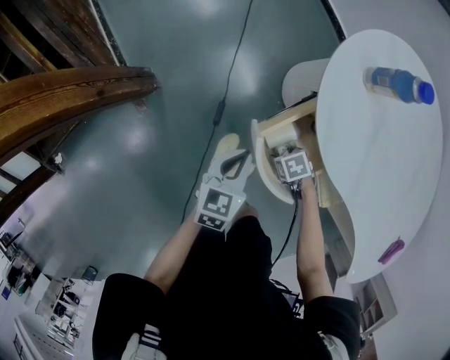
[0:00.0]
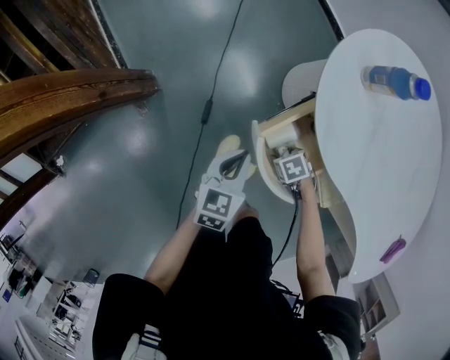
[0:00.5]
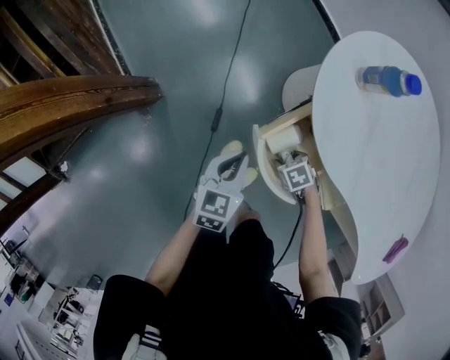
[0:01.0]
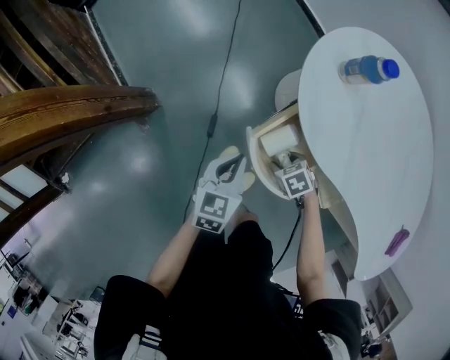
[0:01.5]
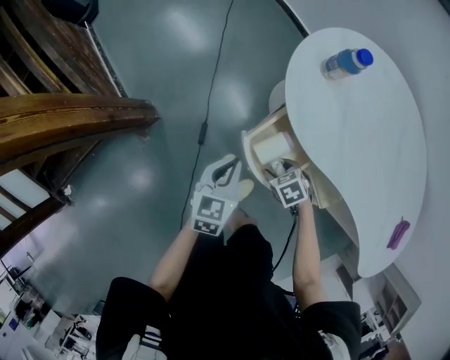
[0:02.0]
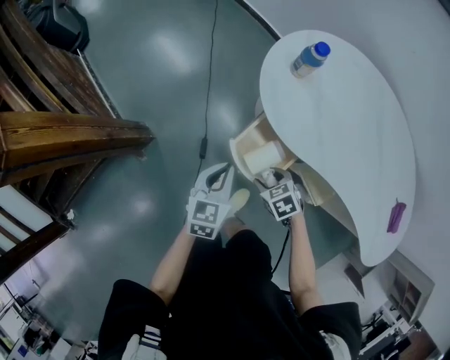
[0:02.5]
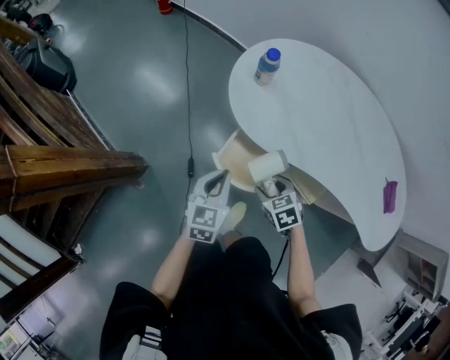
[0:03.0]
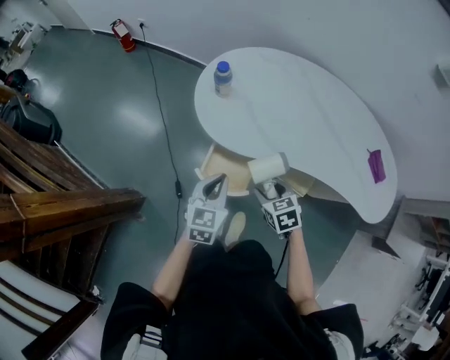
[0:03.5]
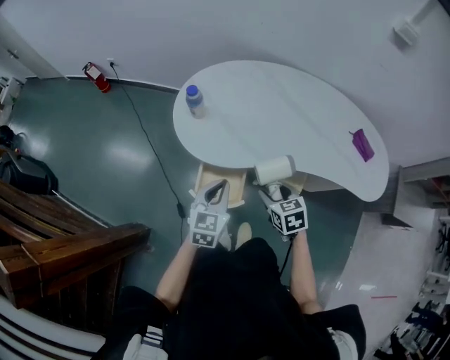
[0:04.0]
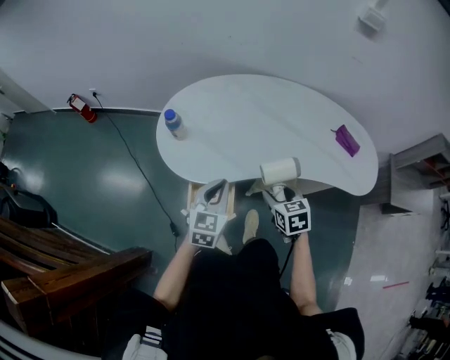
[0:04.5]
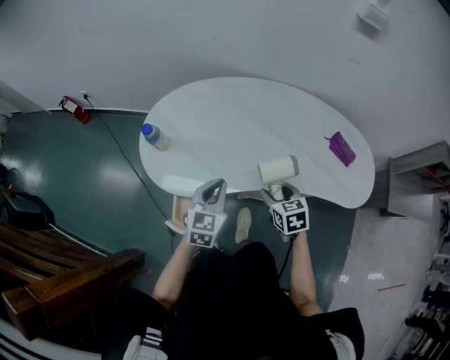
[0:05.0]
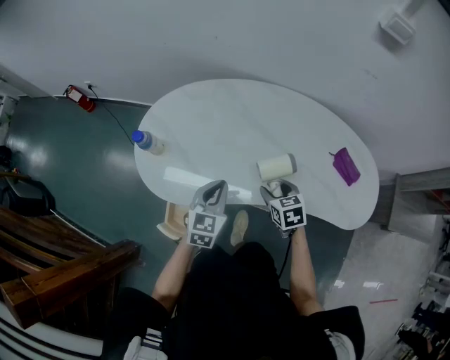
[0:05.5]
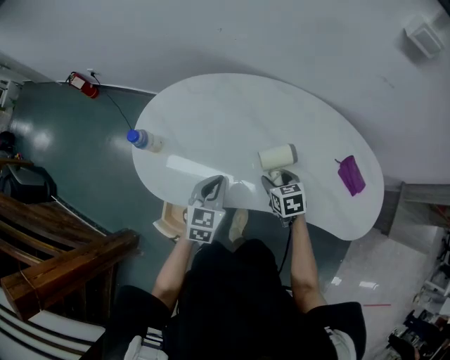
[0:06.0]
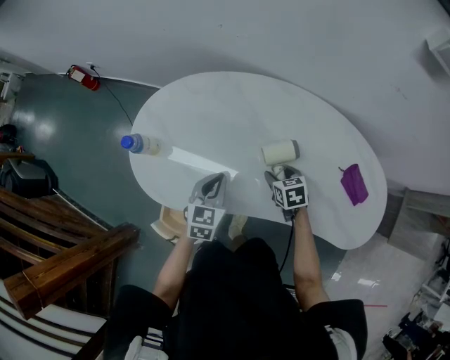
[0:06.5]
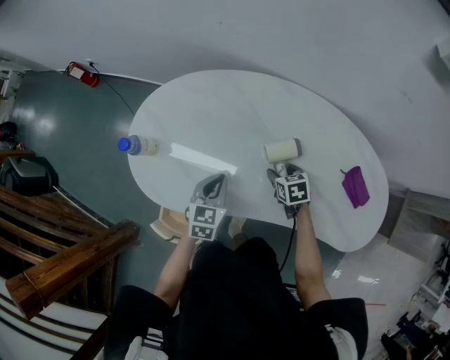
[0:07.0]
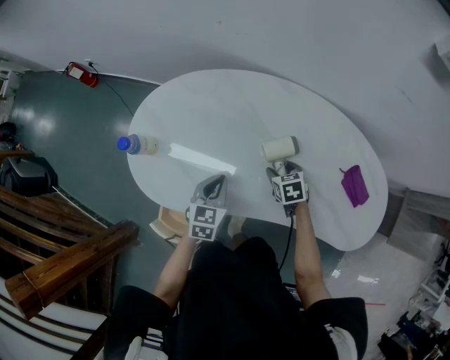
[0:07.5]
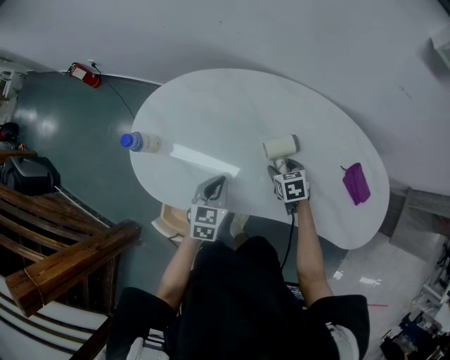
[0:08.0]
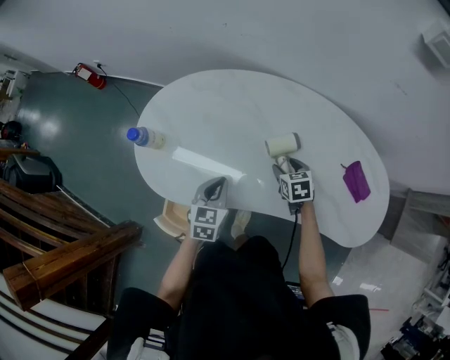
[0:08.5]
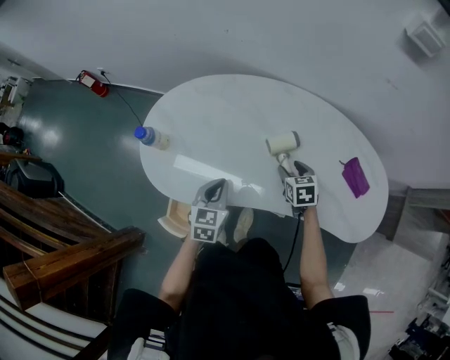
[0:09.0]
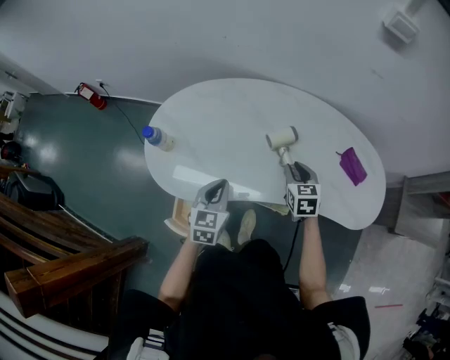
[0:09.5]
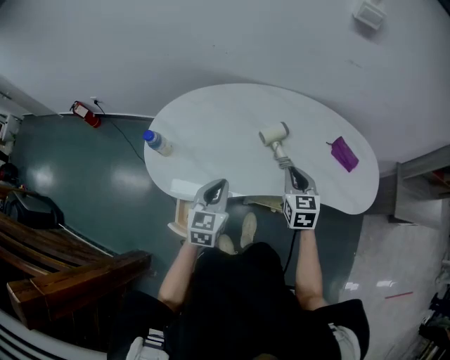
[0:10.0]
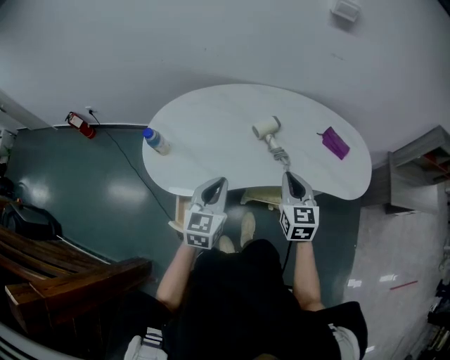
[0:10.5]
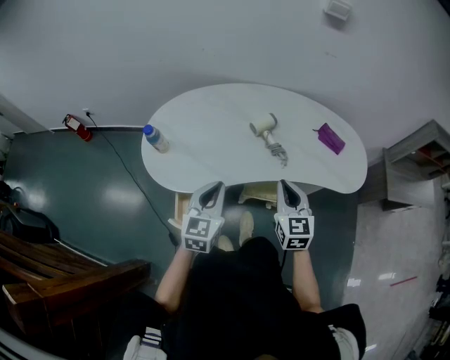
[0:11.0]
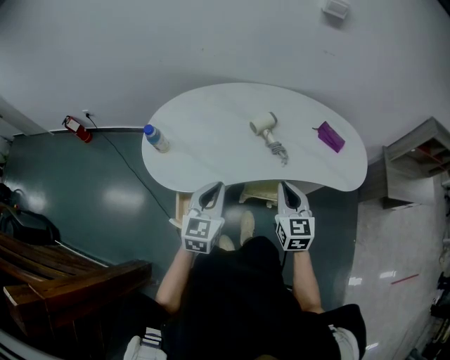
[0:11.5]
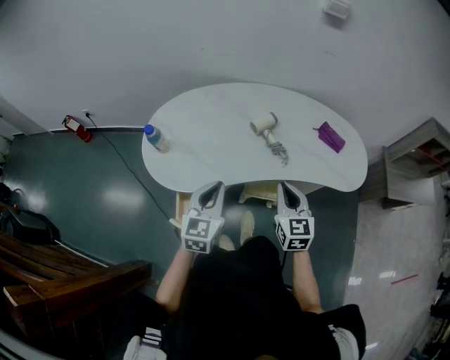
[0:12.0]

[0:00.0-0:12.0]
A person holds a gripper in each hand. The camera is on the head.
0:00.0 to 0:02.0: The right gripper goes some 15 cm upward; the left gripper moves upward, approximately 10 cm.
0:02.0 to 0:04.0: The left gripper shifts by roughly 25 cm, and turns by roughly 40 degrees; the right gripper goes about 25 cm upward, and swivels approximately 60 degrees.
0:04.0 to 0:06.0: Both grippers travel together forward and to the right, approximately 30 cm.
0:06.0 to 0:08.0: The right gripper moves downward and forward, approximately 10 cm. Meanwhile the left gripper changes place by roughly 5 cm.
0:08.0 to 0:10.0: The two grippers go some 20 cm upward and backward. The right gripper turns by about 40 degrees, and closes up.
0:10.0 to 0:12.0: The left gripper travels backward by roughly 10 cm; the right gripper is displaced backward by some 15 cm.

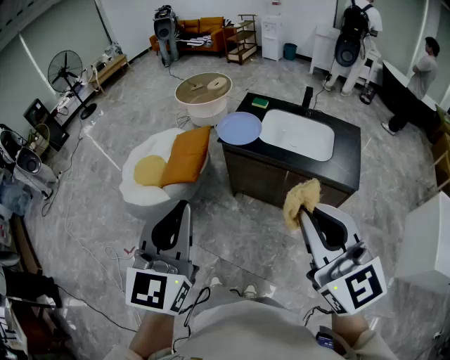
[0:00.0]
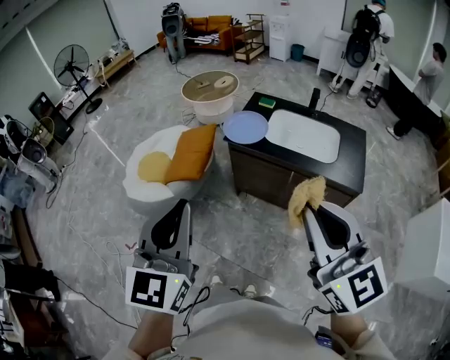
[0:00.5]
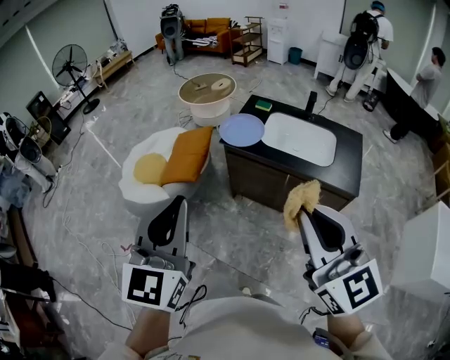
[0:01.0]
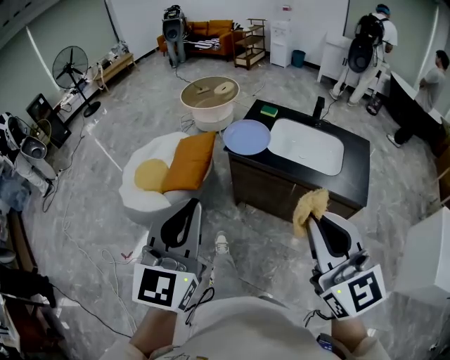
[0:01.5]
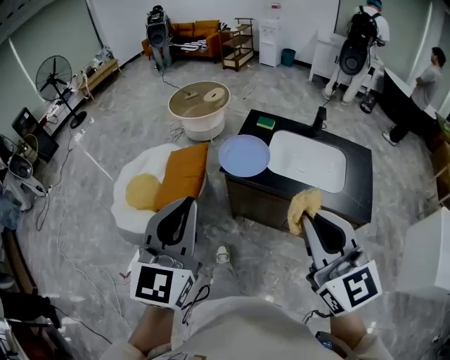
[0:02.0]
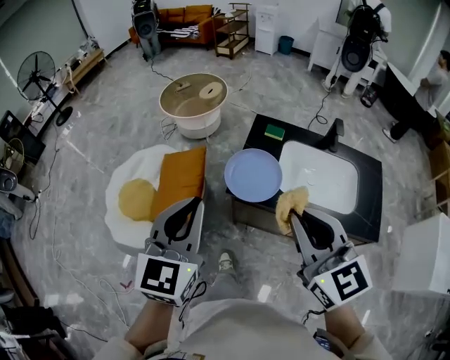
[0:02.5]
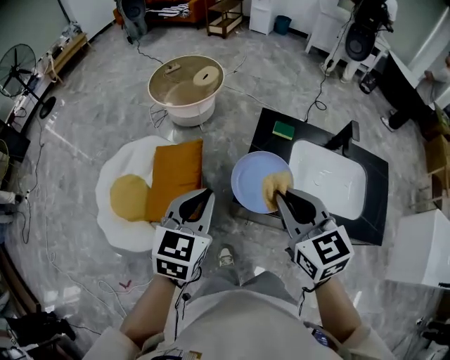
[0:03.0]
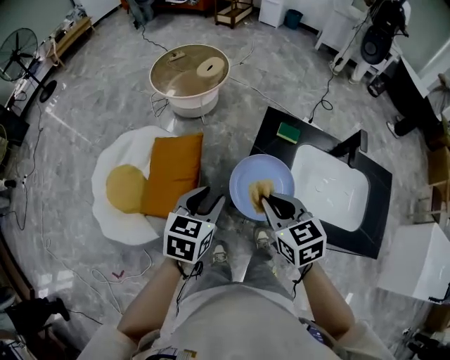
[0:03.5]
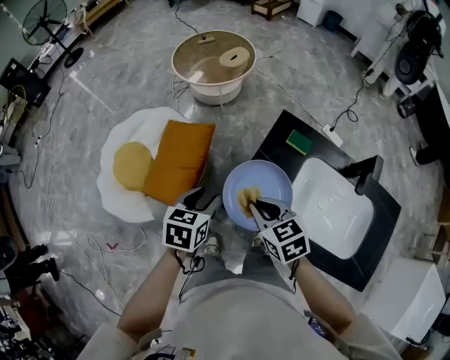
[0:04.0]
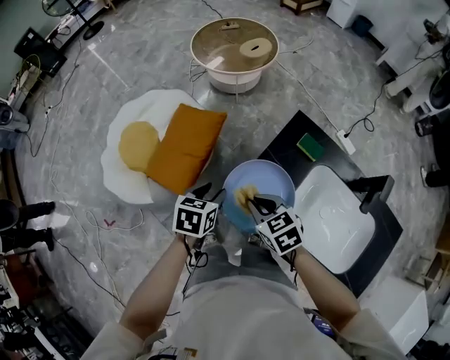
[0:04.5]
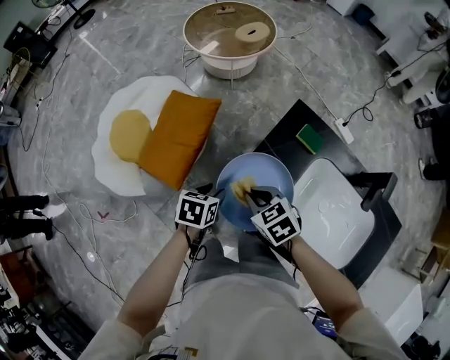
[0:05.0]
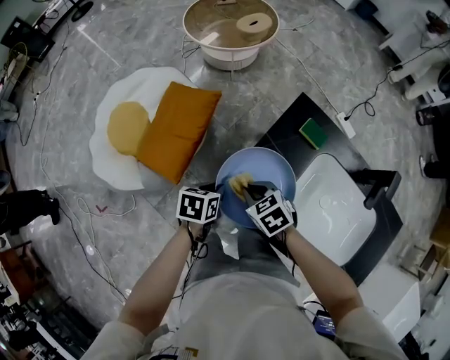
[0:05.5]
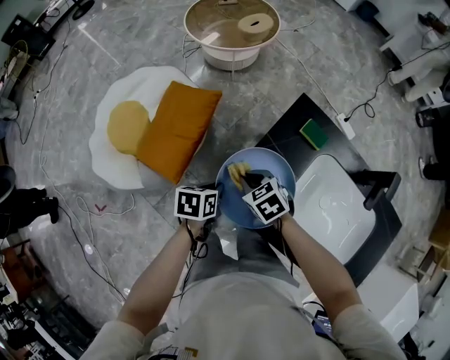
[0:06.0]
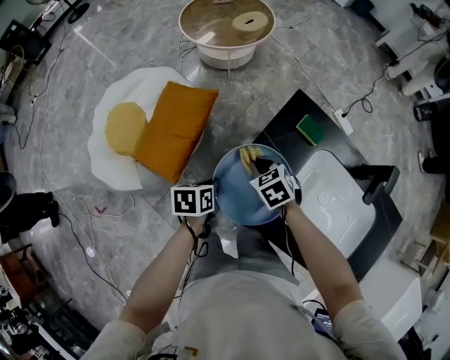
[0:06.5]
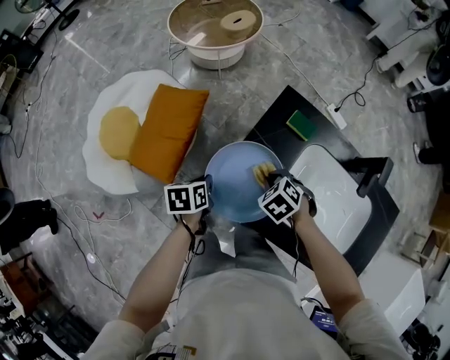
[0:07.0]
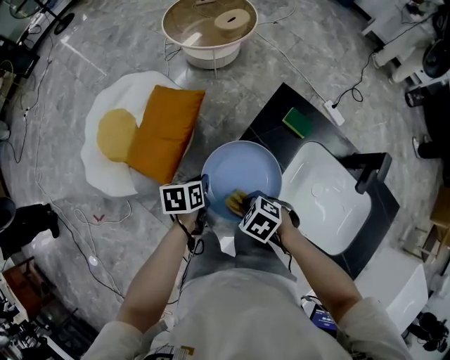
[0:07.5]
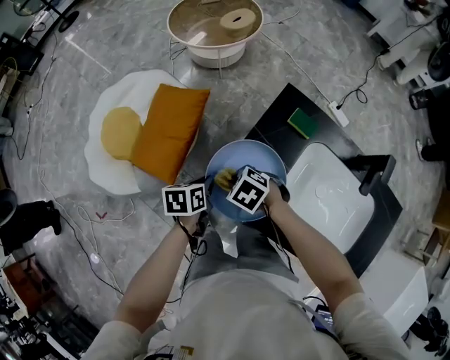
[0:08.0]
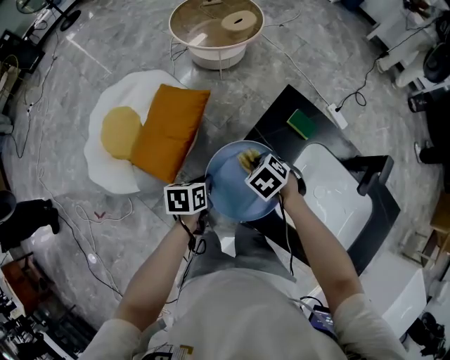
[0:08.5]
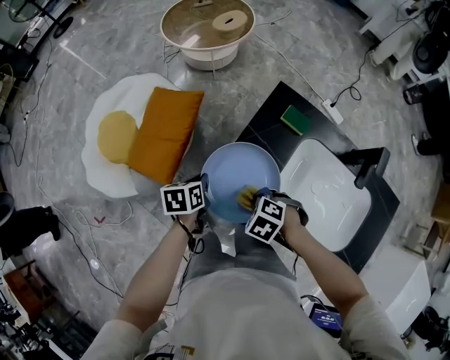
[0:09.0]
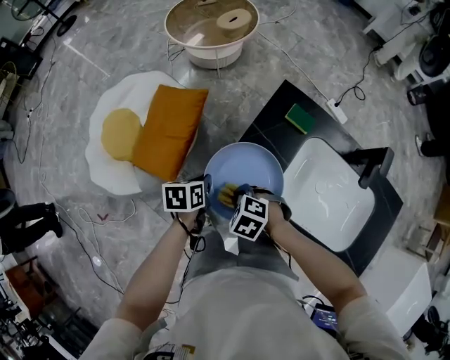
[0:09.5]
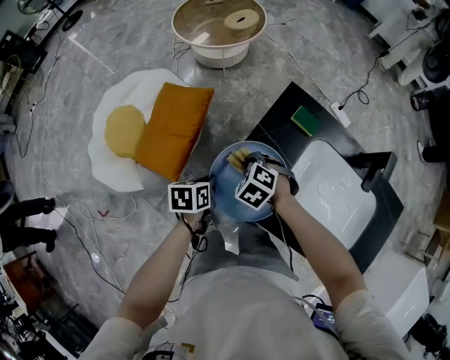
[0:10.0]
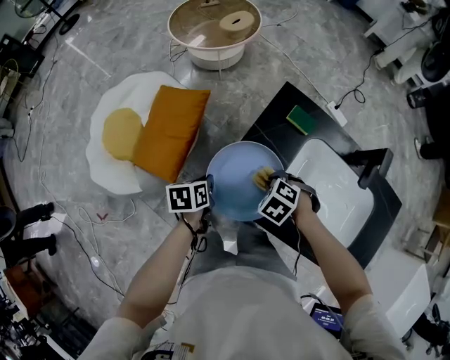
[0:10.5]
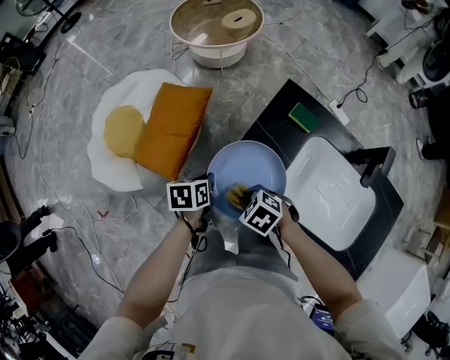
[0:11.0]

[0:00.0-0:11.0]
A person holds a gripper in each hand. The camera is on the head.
0:00.0 to 0:02.0: The grippers both shift forward by approximately 20 cm.
0:02.0 to 0:03.5: Both grippers move forward and downward, roughly 40 cm. The left gripper tips its fingers downward by some 30 degrees, and opens up. Meanwhile the right gripper tilts its fingers about 30 degrees downward.
0:03.5 to 0:05.5: The grippers both shift downward by about 20 cm. The left gripper rotates roughly 40 degrees, and closes. Meanwhile the right gripper turns by some 40 degrees.
0:05.5 to 0:07.5: The right gripper shifts by some 10 cm, and swivels some 20 degrees.

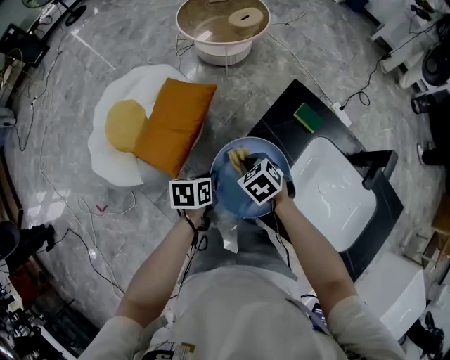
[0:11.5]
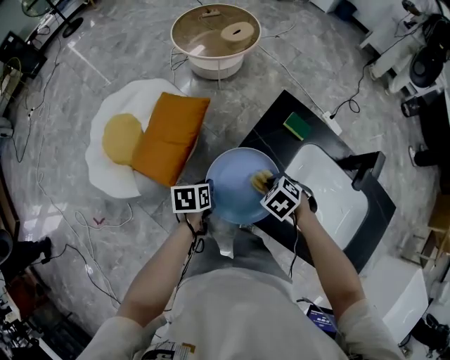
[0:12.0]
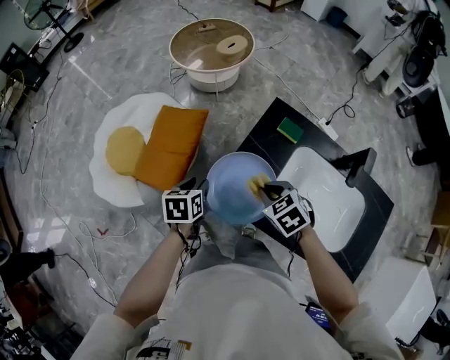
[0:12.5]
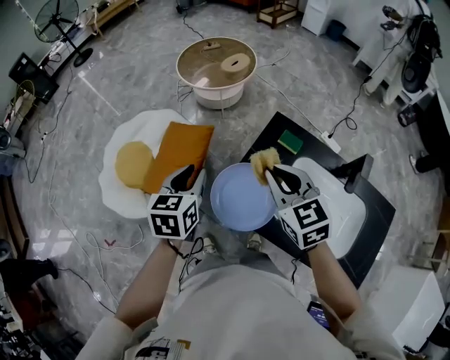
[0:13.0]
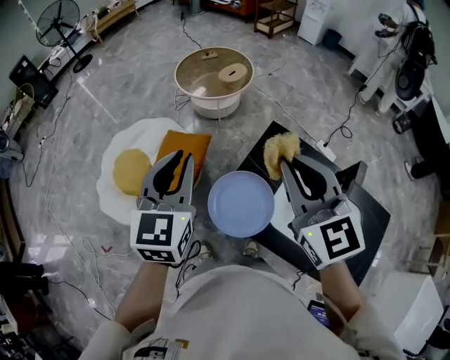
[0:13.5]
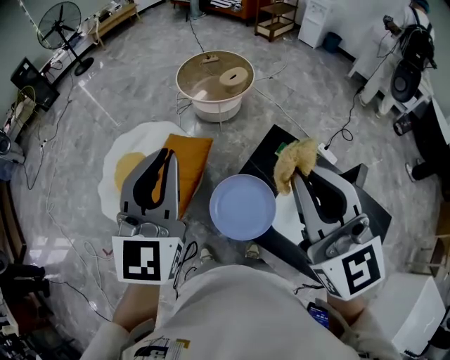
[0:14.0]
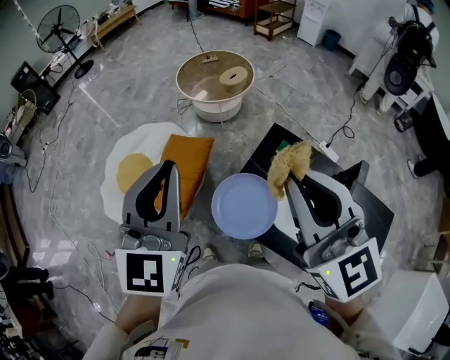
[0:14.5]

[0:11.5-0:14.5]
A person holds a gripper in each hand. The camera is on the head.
0:11.5 to 0:13.0: Both grippers move upward, roughly 25 cm. The left gripper turns by some 40 degrees, and opens. Meanwhile the right gripper points its fingers some 40 degrees further upward.
0:13.0 to 0:14.5: Both grippers move upward, roughly 25 cm. The right gripper rotates roughly 30 degrees. The left gripper tips its fingers upward by about 30 degrees, and closes up.

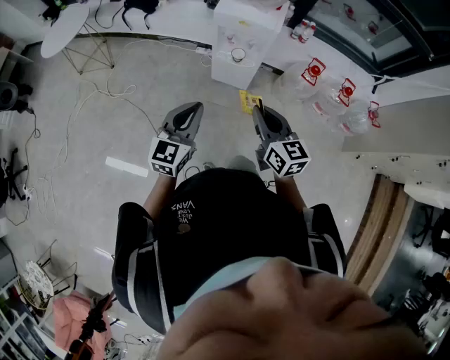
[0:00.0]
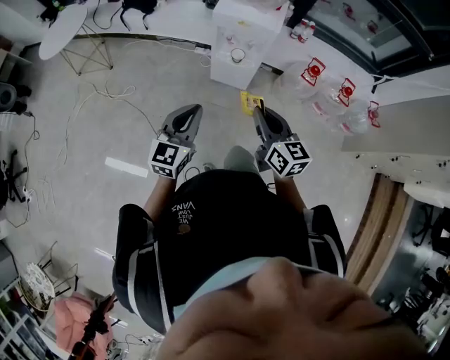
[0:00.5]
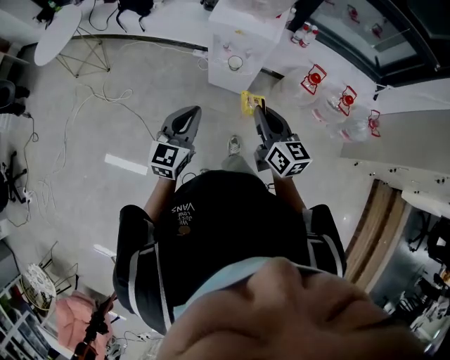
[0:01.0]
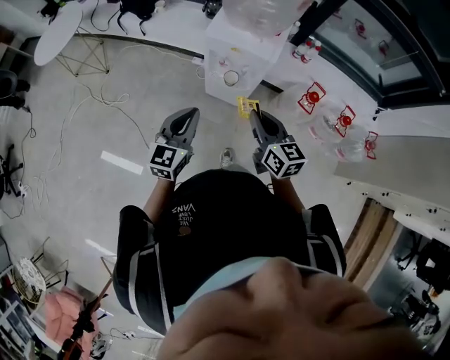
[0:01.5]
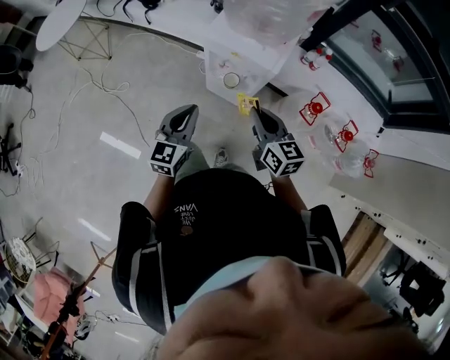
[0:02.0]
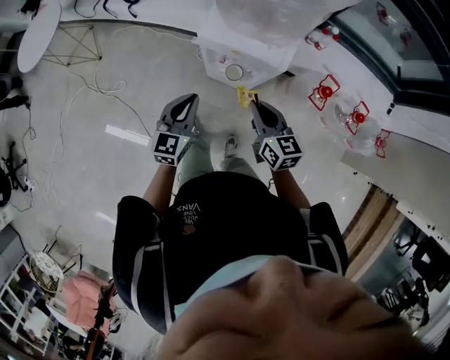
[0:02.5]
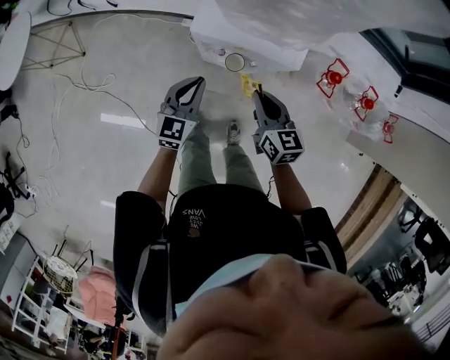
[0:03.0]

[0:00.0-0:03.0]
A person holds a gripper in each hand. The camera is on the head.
0:00.0 to 0:01.5: Both grippers travel together forward, approximately 20 cm.
0:01.5 to 0:03.0: The grippers both shift forward and downward by some 30 cm.
